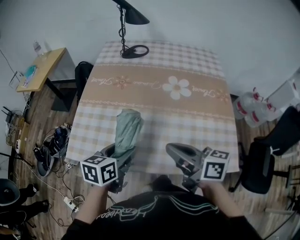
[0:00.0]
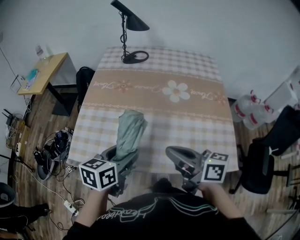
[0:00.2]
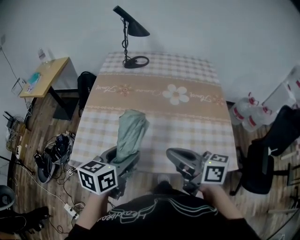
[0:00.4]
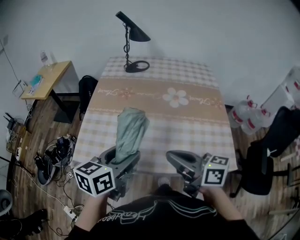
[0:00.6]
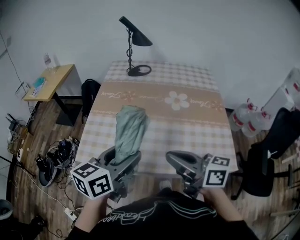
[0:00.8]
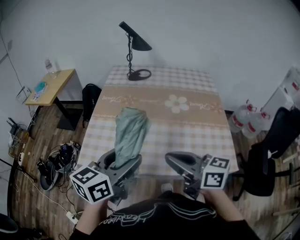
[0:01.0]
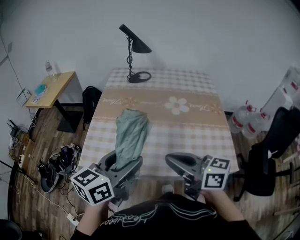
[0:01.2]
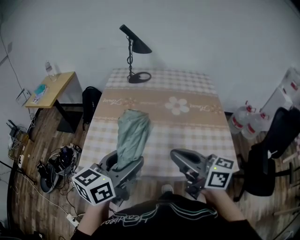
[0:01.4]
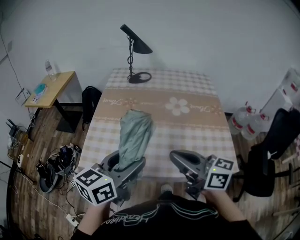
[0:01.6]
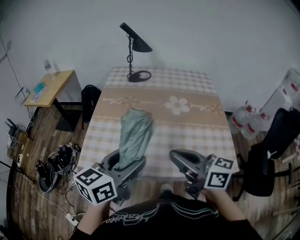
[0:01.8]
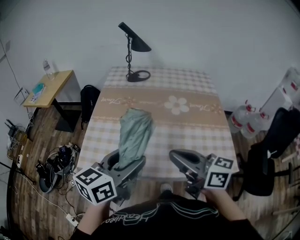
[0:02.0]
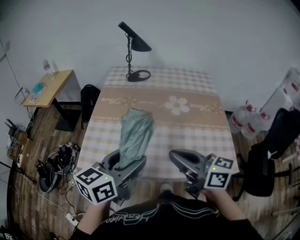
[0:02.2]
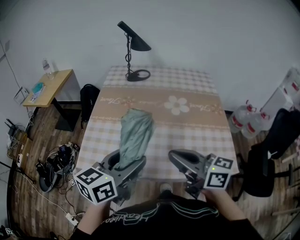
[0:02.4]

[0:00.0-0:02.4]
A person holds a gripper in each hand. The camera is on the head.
0:00.0 to 0:01.2: The left gripper travels upward and backward by roughly 20 cm, and rotates approximately 30 degrees. The right gripper travels backward, upward and to the left by some 15 cm.
0:01.2 to 0:02.4: The grippers stay close to where they were, moving slightly.

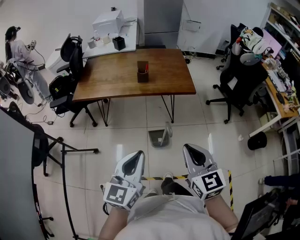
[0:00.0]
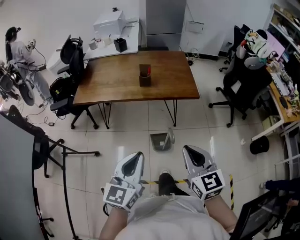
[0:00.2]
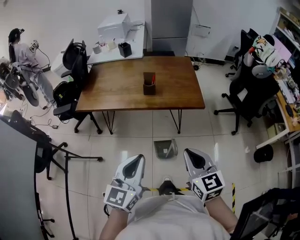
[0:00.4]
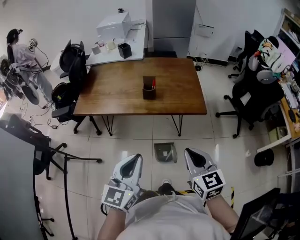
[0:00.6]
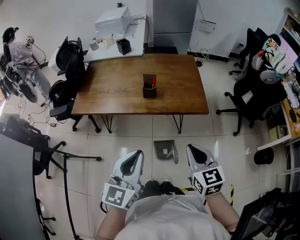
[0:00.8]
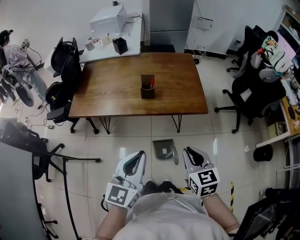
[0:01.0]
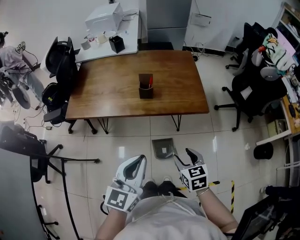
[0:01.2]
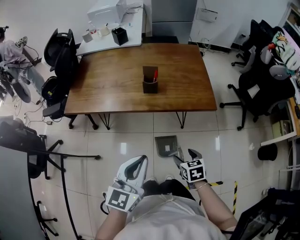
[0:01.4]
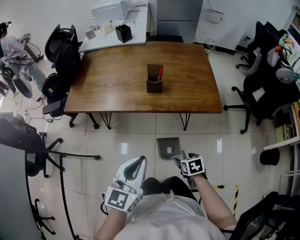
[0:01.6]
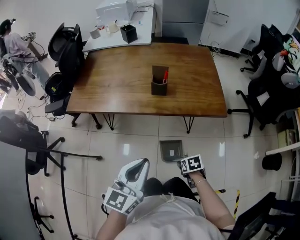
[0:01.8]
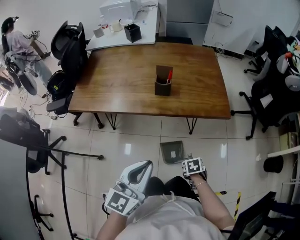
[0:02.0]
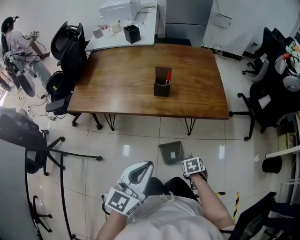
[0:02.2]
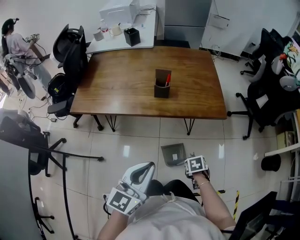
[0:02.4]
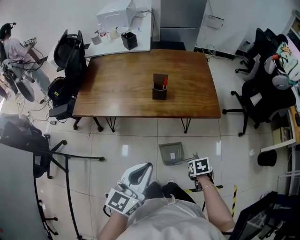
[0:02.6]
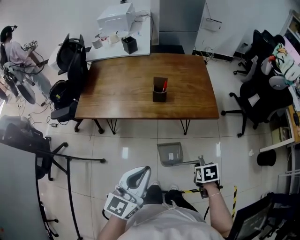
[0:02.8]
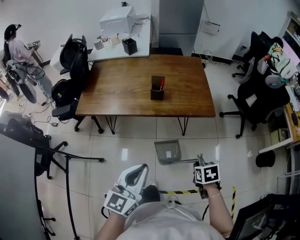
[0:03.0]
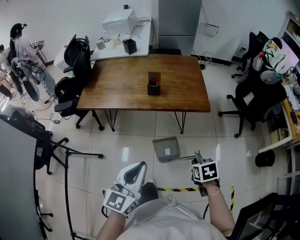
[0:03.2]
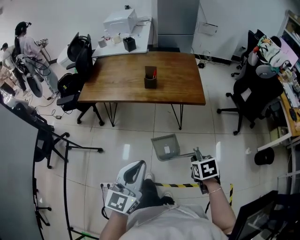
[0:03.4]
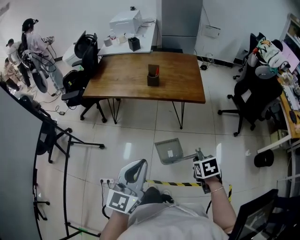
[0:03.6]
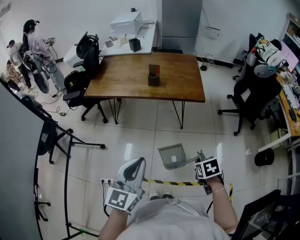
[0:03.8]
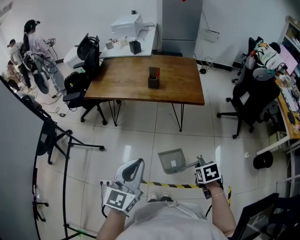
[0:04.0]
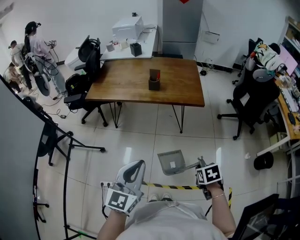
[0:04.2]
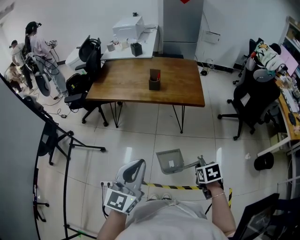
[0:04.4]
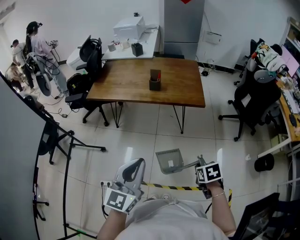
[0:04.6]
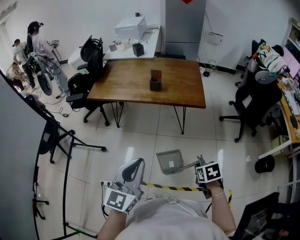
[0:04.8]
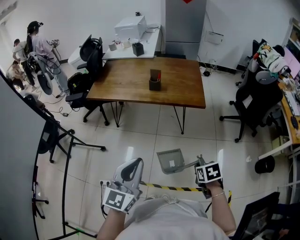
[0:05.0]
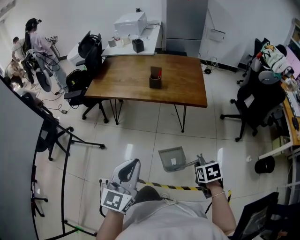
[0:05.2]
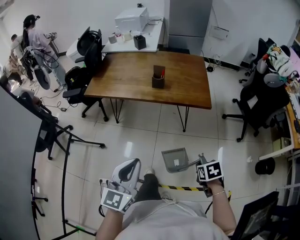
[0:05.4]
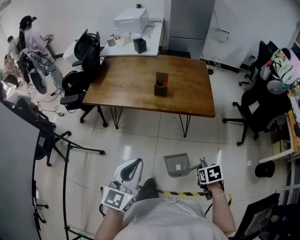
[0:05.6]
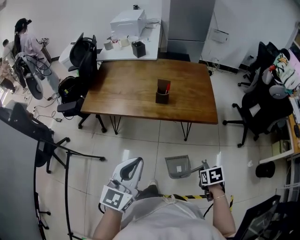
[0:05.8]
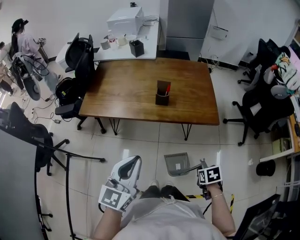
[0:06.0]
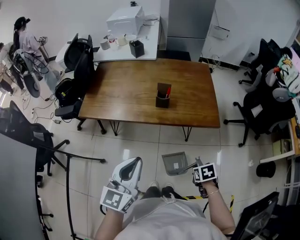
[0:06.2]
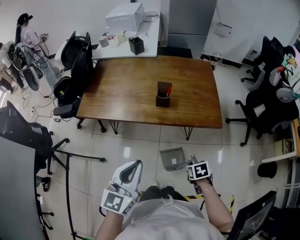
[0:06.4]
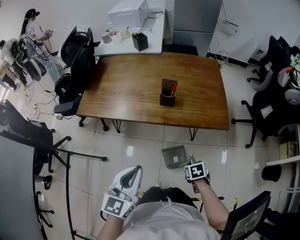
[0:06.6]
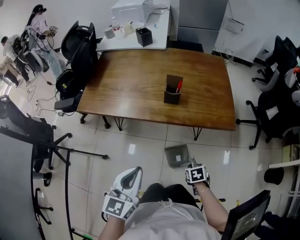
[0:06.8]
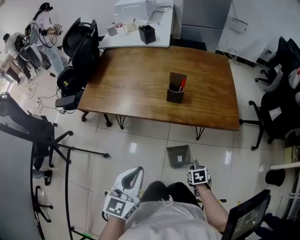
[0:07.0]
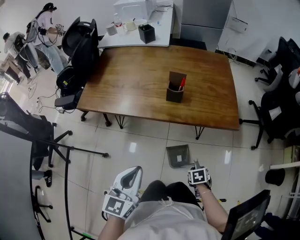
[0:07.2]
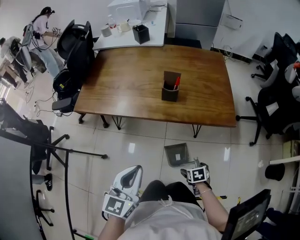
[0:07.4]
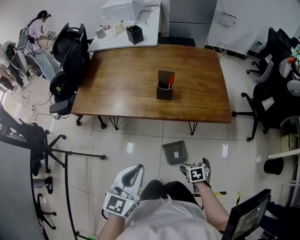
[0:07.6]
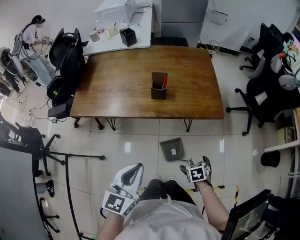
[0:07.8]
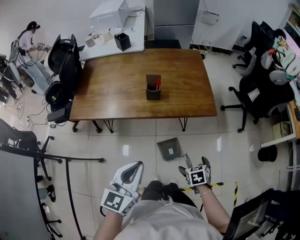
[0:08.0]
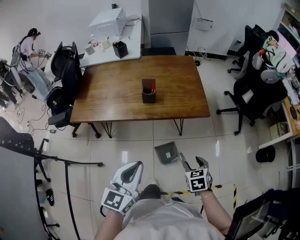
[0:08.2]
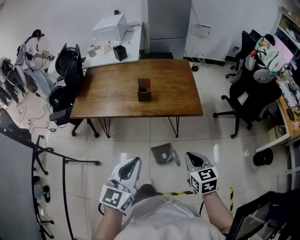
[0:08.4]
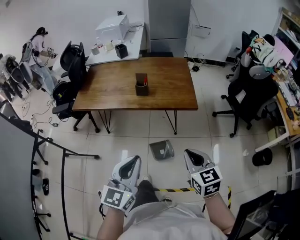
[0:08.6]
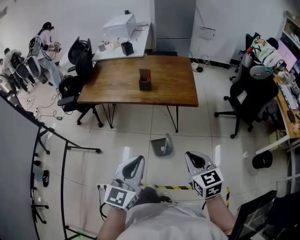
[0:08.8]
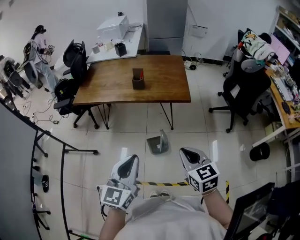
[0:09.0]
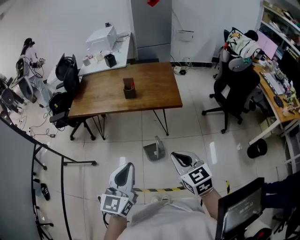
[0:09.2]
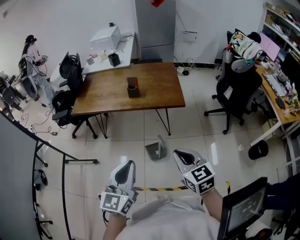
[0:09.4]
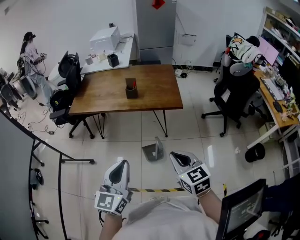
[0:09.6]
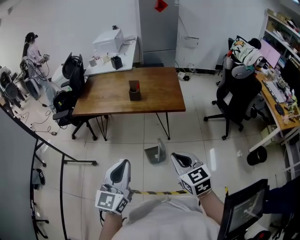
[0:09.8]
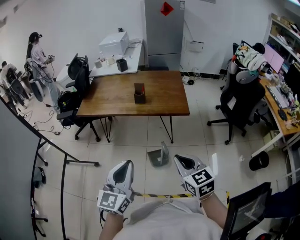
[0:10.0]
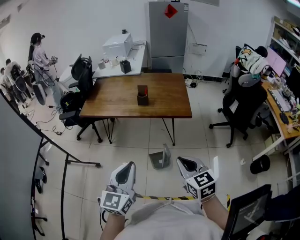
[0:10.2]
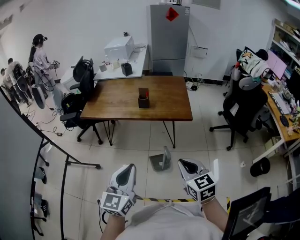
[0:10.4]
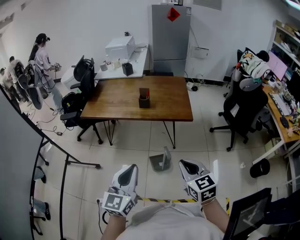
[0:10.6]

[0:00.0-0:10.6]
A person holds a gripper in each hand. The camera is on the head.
0:00.0 to 0:01.6: The left gripper moves forward and downward, about 25 cm, while the right gripper goes roughly 40 cm downward and forward, tilts its fingers about 50 degrees downward, and opens its fingers.
0:01.6 to 0:03.0: The left gripper moves upward, some 10 cm. The right gripper heads upward, covering some 15 cm, and closes.
0:03.0 to 0:04.6: The right gripper heads backward and to the right, covering some 20 cm. Meanwhile the left gripper goes approximately 15 cm backward.
0:04.6 to 0:06.0: The grippers both shift forward by approximately 20 cm.
0:06.0 to 0:07.6: Both grippers move downward, about 15 cm. The right gripper opens up.
0:07.6 to 0:09.0: The left gripper travels backward, to the right and upward by some 30 cm; the right gripper goes some 40 cm upward and backward, points its fingers some 40 degrees further upward, and closes its fingers.
0:09.0 to 0:10.6: The grippers stay close to where they were, moving slightly.

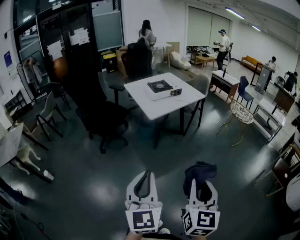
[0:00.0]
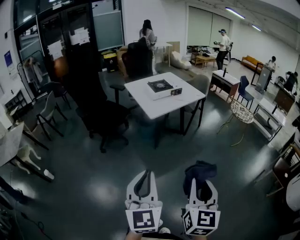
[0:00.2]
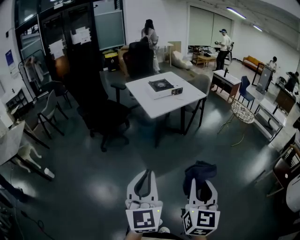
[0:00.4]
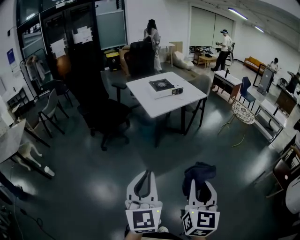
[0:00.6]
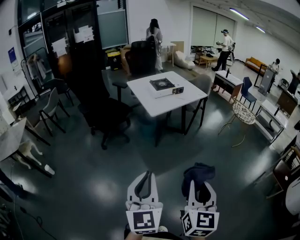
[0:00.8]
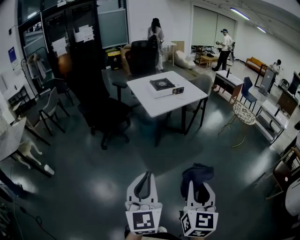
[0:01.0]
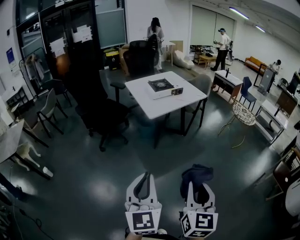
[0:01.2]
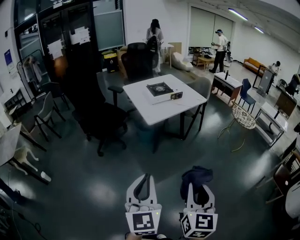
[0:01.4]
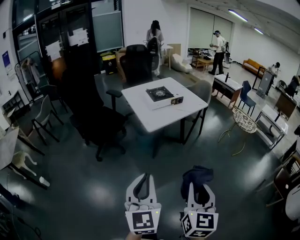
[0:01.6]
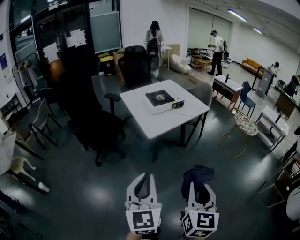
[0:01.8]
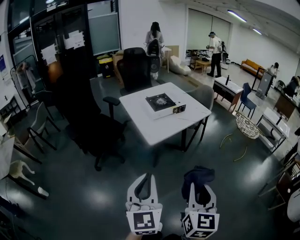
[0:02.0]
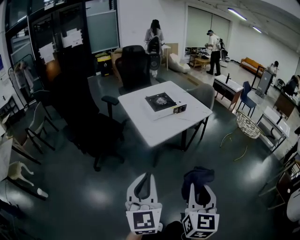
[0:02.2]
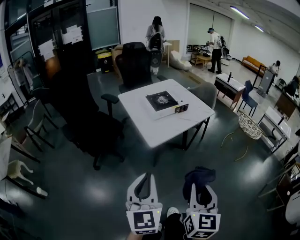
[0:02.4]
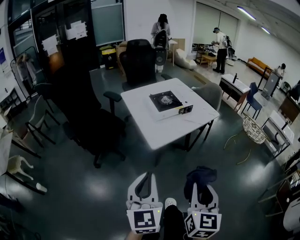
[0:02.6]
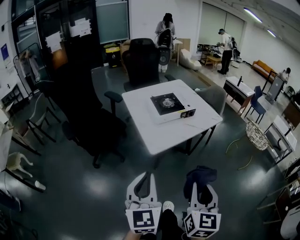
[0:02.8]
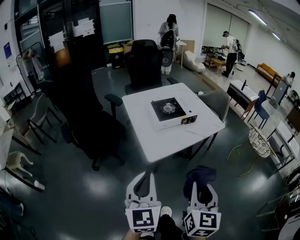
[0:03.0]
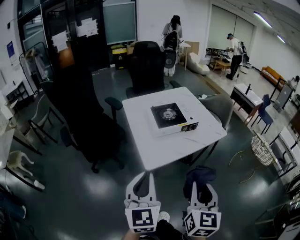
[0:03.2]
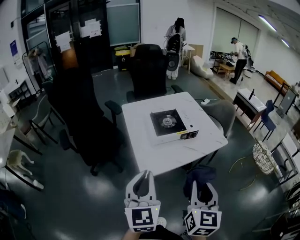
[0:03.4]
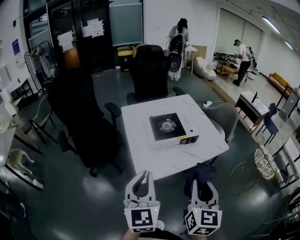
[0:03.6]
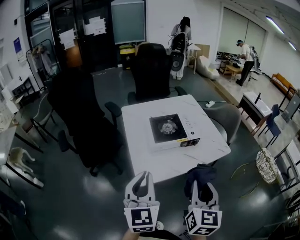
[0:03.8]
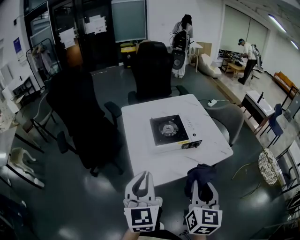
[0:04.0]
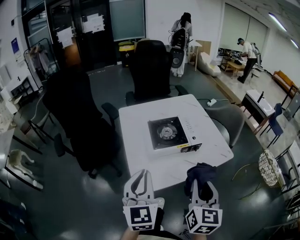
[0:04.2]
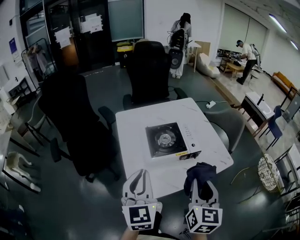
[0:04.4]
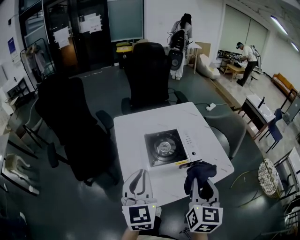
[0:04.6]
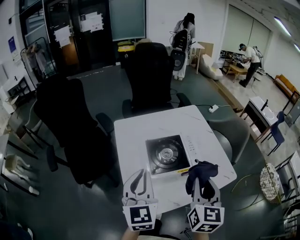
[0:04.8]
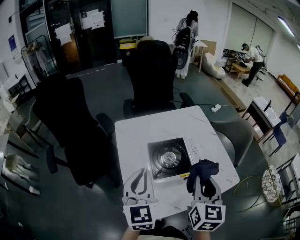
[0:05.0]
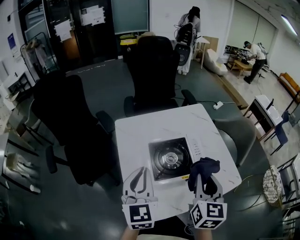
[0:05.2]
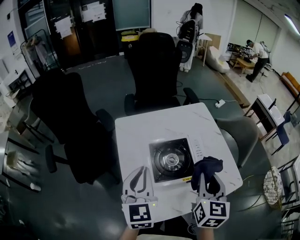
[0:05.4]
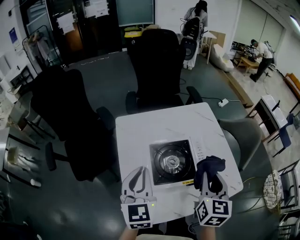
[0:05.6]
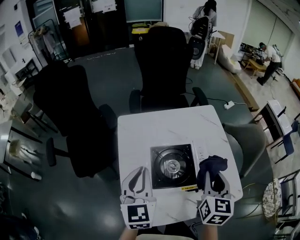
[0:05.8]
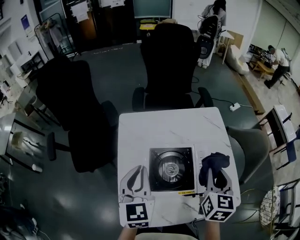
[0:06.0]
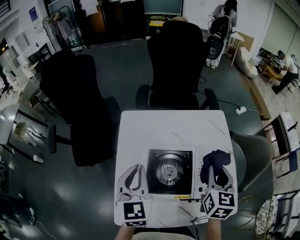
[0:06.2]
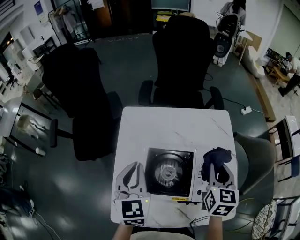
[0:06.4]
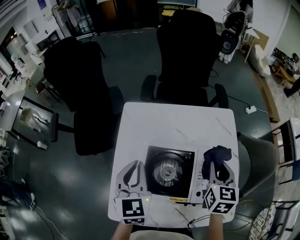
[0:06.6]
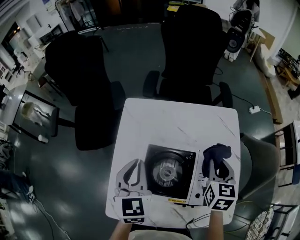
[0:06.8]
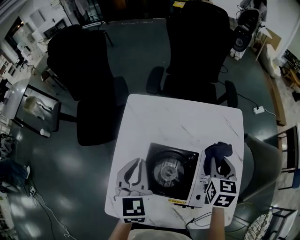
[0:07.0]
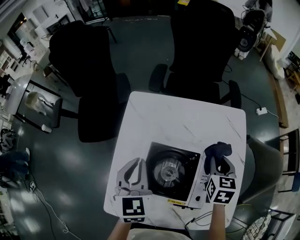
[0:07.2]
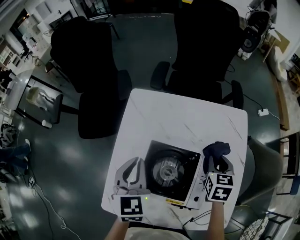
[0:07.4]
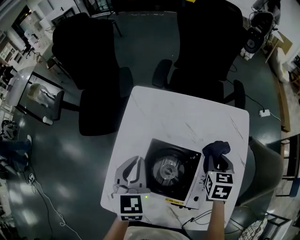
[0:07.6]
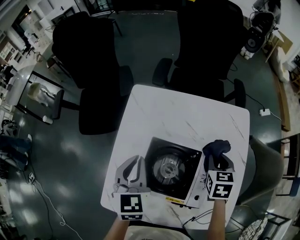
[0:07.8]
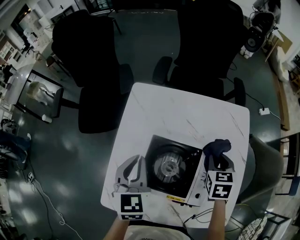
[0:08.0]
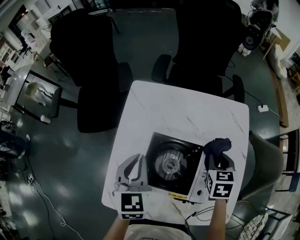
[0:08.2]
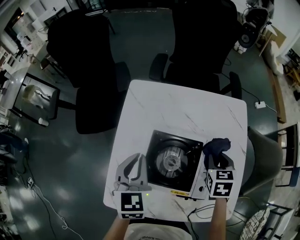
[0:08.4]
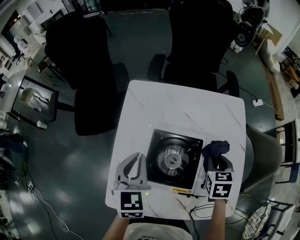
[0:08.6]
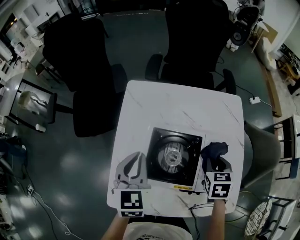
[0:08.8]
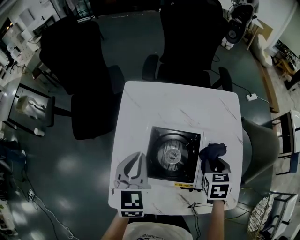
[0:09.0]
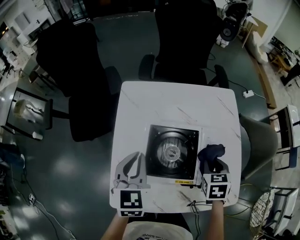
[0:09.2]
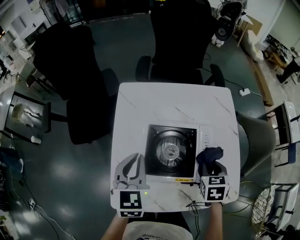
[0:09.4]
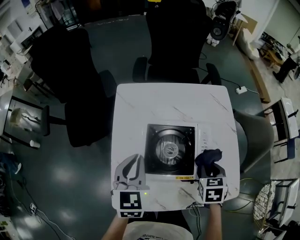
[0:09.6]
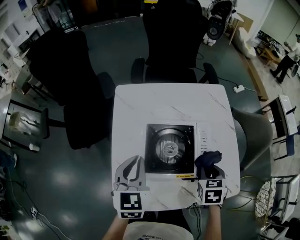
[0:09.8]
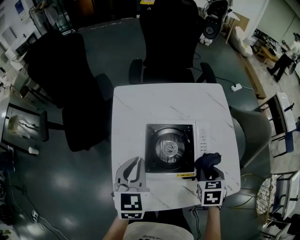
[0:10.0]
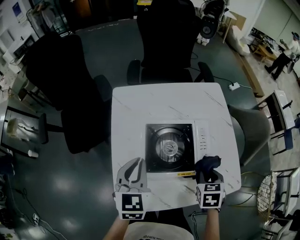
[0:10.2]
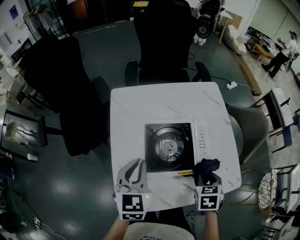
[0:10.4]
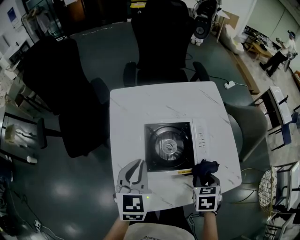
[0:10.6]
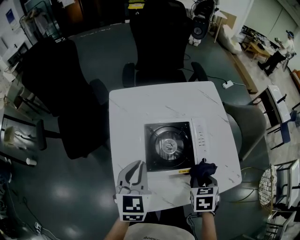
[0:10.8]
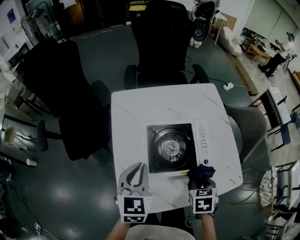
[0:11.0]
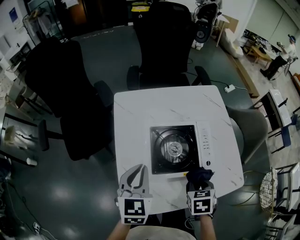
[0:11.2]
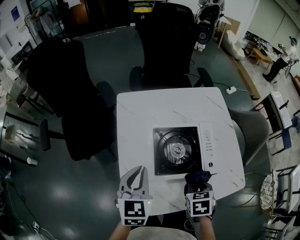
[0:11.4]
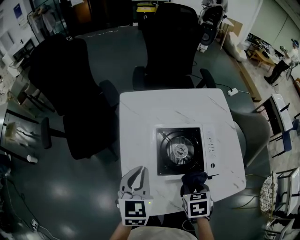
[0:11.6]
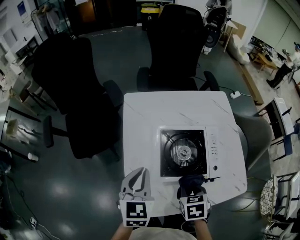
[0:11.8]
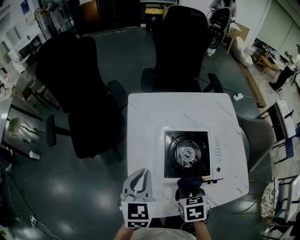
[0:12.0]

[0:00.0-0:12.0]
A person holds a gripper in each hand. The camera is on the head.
0:00.0 to 0:01.6: Both grippers move forward, some 10 cm.
0:01.6 to 0:03.0: The grippers both shift forward by roughly 30 cm.
0:03.0 to 0:04.4: Both grippers move forward, roughly 30 cm.
0:04.4 to 0:06.0: The grippers both shift forward by about 25 cm.
0:06.0 to 0:07.6: The left gripper moves downward, some 5 cm. The right gripper goes approximately 20 cm forward and downward, and rotates approximately 30 degrees.
0:07.6 to 0:09.0: The right gripper is displaced backward by some 10 cm.
0:09.0 to 0:10.4: The right gripper shifts approximately 15 cm backward.
0:10.4 to 0:12.0: The right gripper heads to the left, covering roughly 15 cm, while the left gripper shifts about 5 cm to the left.
